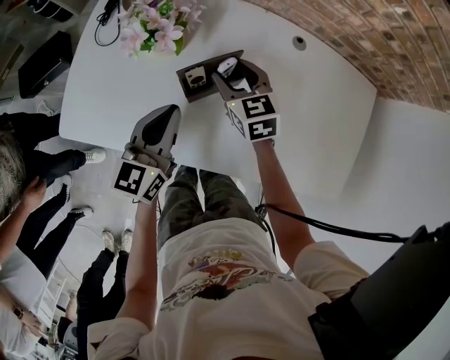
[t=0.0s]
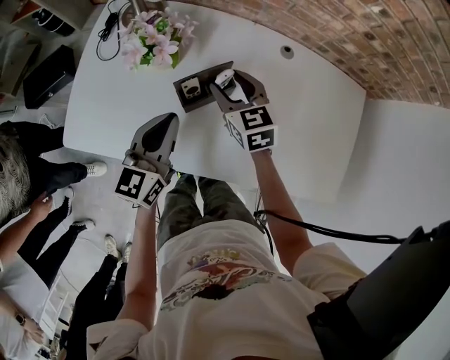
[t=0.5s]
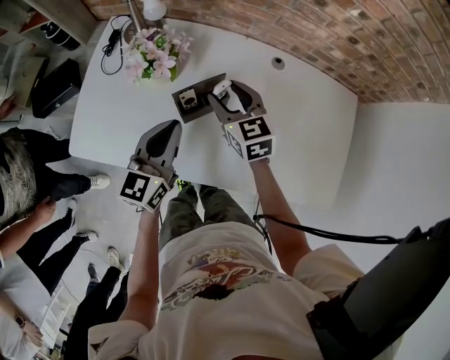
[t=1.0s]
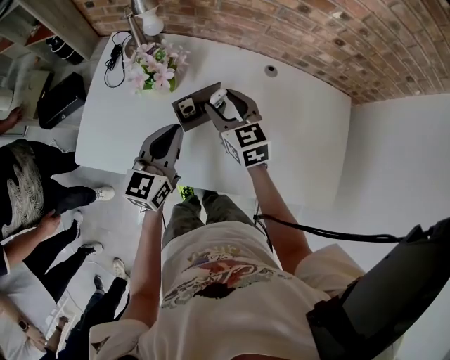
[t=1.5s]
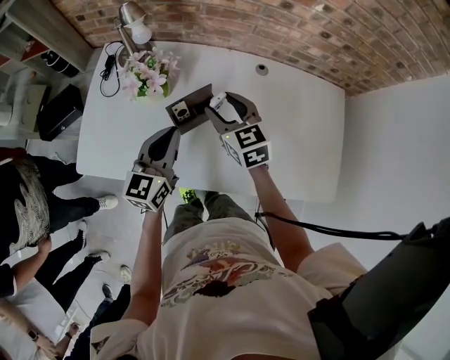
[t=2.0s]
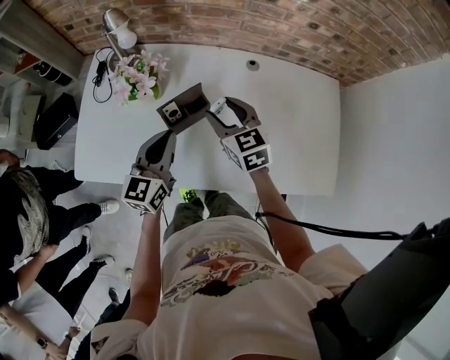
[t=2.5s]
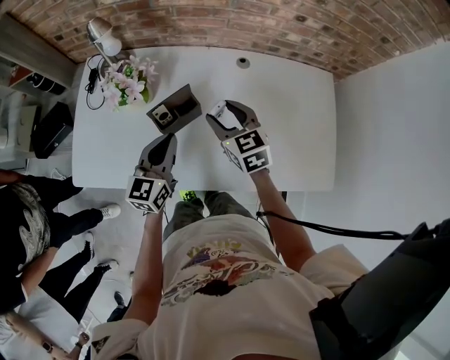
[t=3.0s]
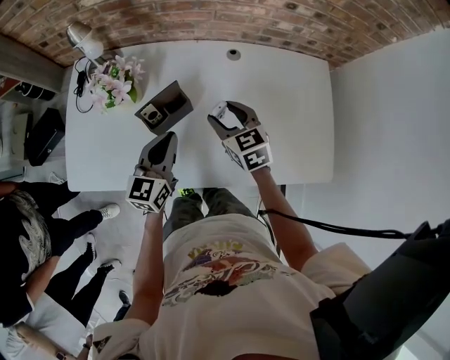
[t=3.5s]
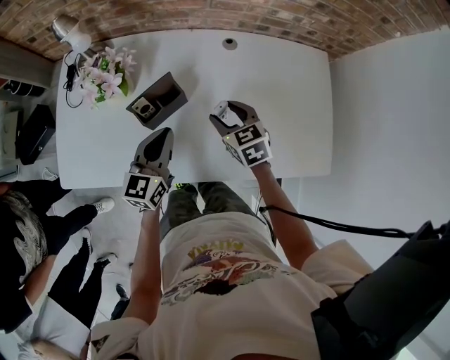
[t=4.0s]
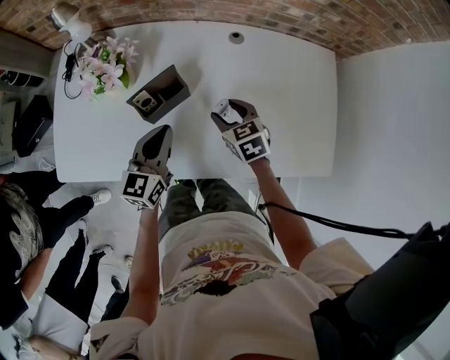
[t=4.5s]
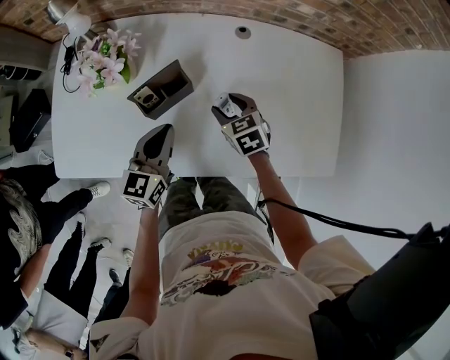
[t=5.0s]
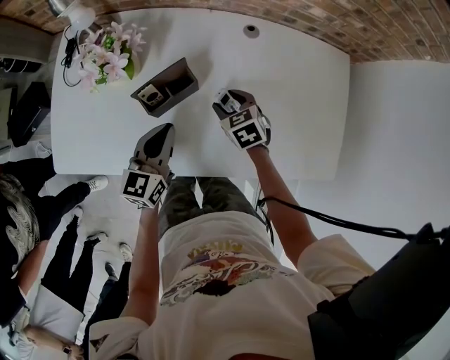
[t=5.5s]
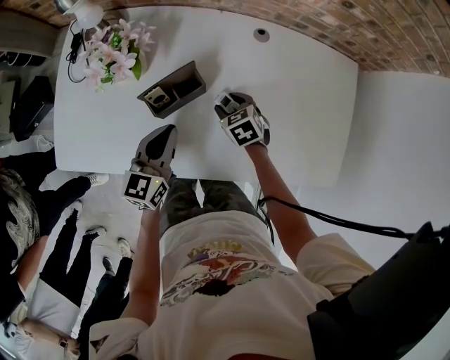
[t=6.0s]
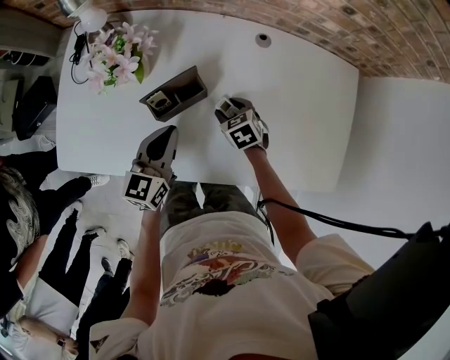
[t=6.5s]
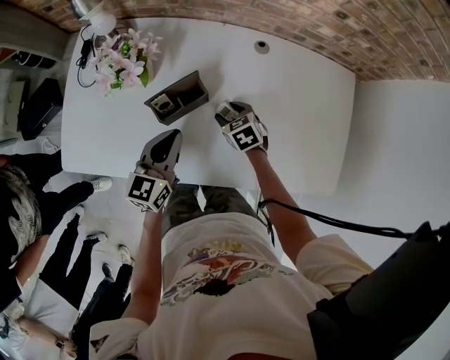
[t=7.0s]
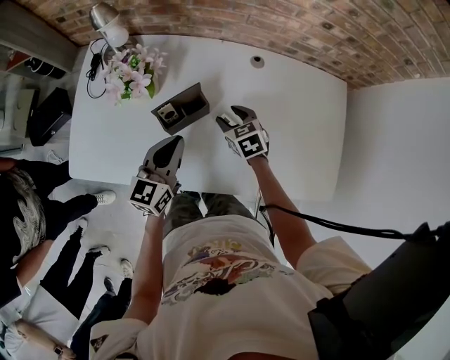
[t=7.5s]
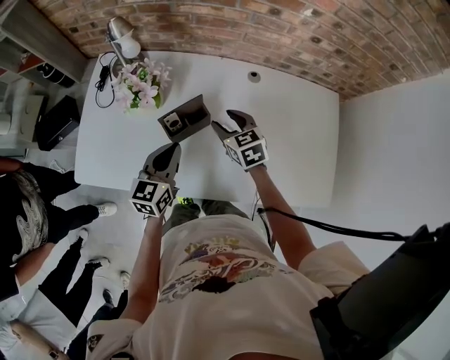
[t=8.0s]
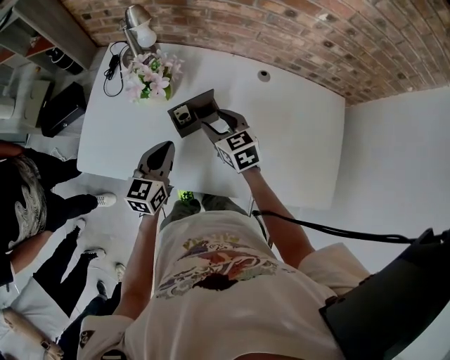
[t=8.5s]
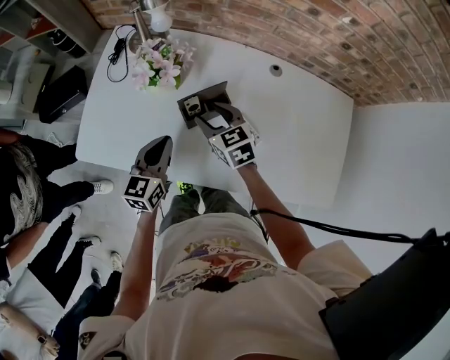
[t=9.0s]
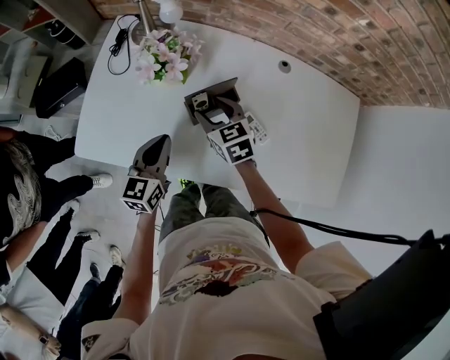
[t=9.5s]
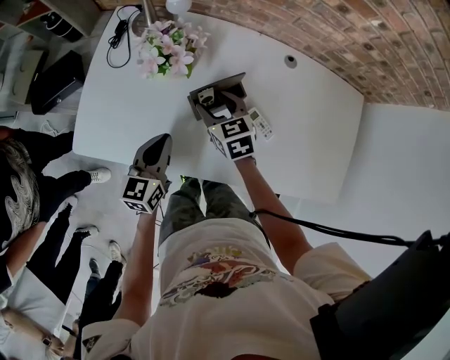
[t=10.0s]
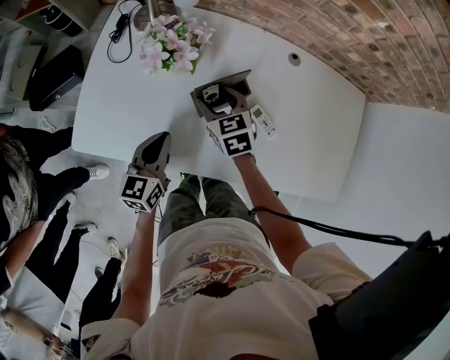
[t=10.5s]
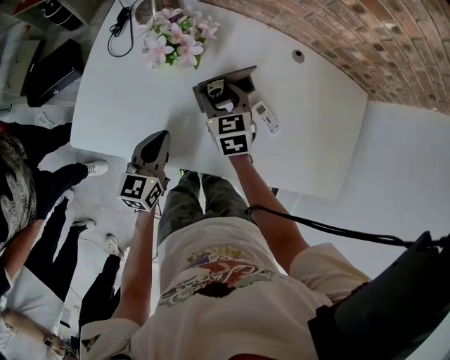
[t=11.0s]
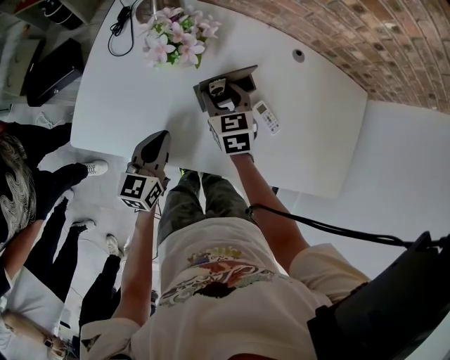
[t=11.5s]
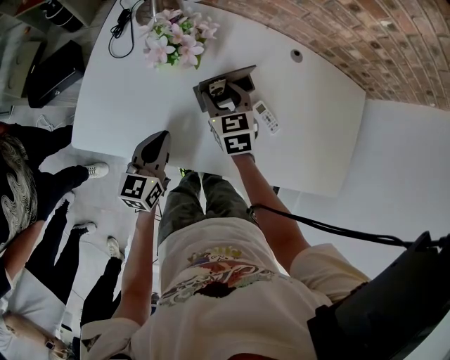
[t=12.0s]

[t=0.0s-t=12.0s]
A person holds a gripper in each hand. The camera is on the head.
t=0.0s to t=2.0s: The left gripper goes roughly 5 cm upward; the right gripper goes some 10 cm upward.
t=2.0s to t=4.0s: The right gripper heads to the right and downward, covering roughly 15 cm. Meanwhile the left gripper heads to the right and downward, covering roughly 10 cm.
t=4.0s to t=6.0s: The right gripper goes about 10 cm downward; the left gripper shifts by some 5 cm.
t=6.0s to t=8.0s: The left gripper ends up some 5 cm from where it was. The right gripper shifts roughly 15 cm upward, and swivels some 20 degrees.
t=8.0s to t=10.0s: The left gripper shifts about 10 cm to the left and downward, while the right gripper shifts roughly 15 cm to the left.
t=10.0s to t=12.0s: There are only small adjustments of the grippers.

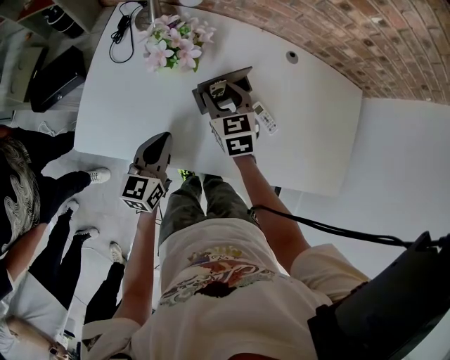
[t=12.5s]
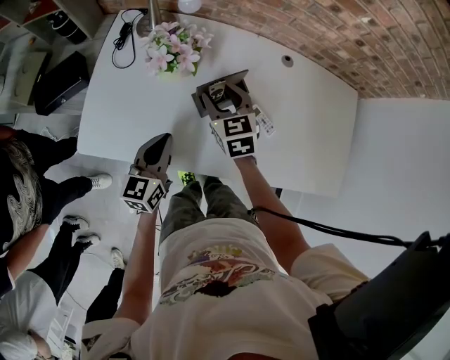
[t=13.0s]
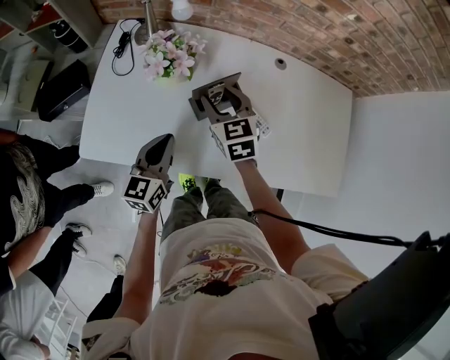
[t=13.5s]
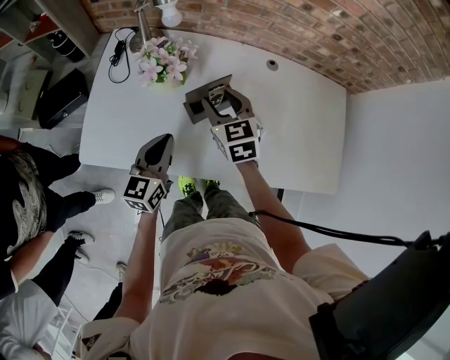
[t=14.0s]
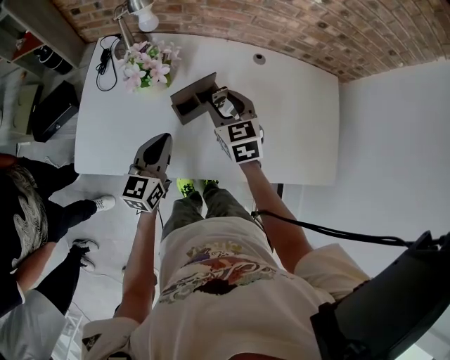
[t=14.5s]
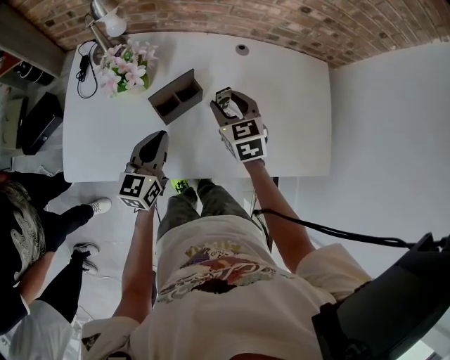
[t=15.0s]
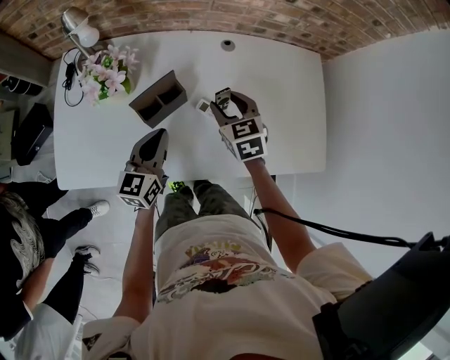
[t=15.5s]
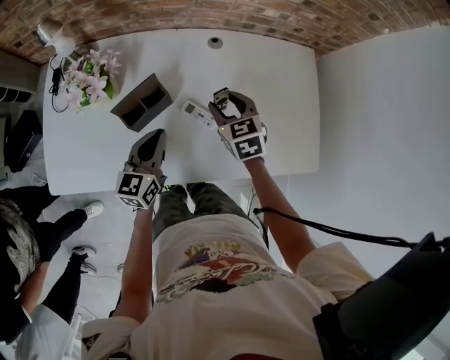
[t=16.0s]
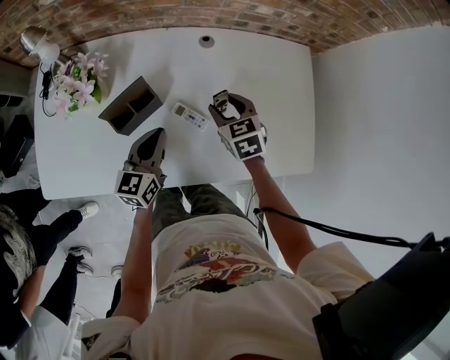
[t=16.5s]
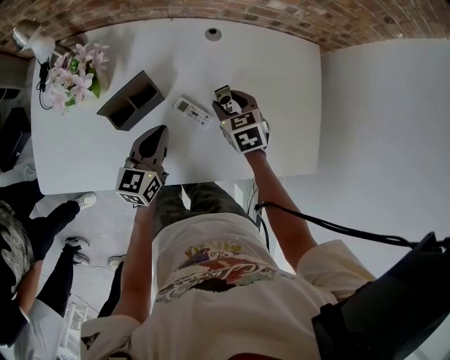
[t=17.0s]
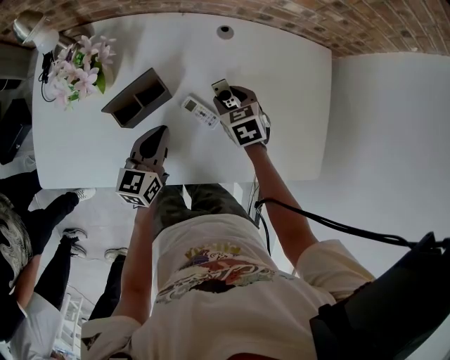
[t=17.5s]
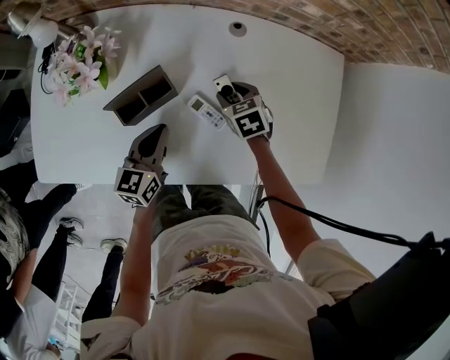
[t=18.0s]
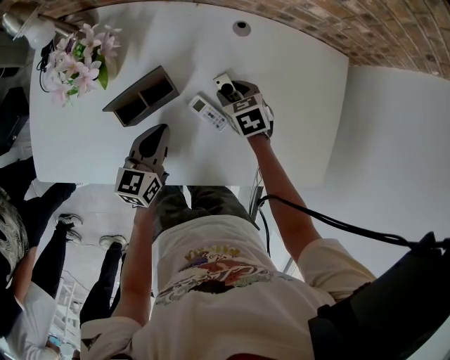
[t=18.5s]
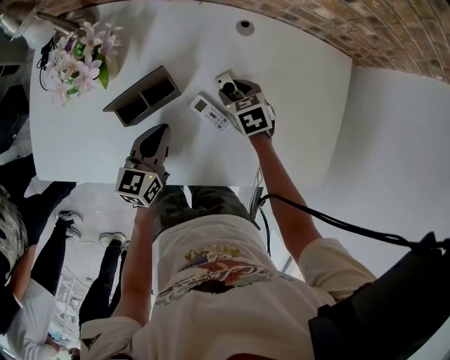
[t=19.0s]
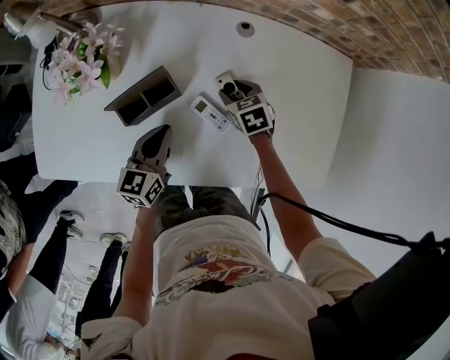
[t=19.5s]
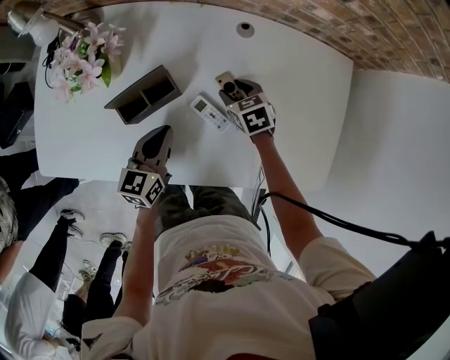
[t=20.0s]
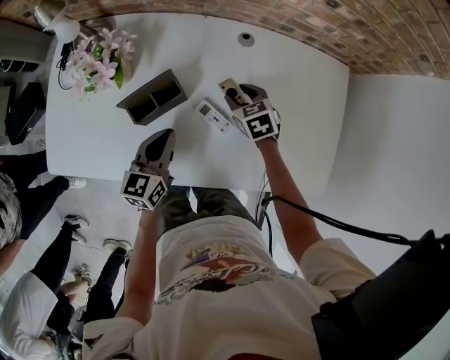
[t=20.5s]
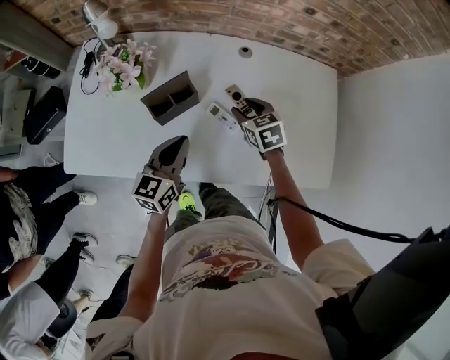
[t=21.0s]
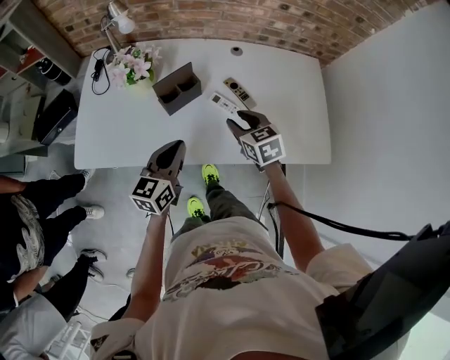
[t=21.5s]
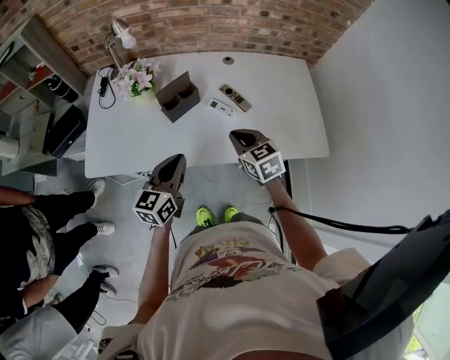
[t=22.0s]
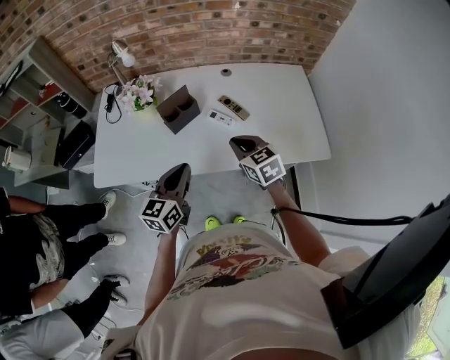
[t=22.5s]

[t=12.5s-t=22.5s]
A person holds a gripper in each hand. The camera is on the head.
t=12.5s to t=14.5s: The left gripper goes some 10 cm upward and to the right, while the right gripper travels to the right and upward by some 10 cm.
t=14.5s to t=16.5s: The right gripper heads to the right and downward, covering about 20 cm; the left gripper moves to the right, about 15 cm.
t=16.5s to t=18.5s: The right gripper heads downward and forward, covering about 15 cm. The left gripper travels downward by roughly 5 cm.
t=18.5s to t=20.5s: The grippers stay close to where they were, moving slightly.
t=20.5s to t=22.5s: The grippers both shift backward and upward by about 30 cm. The right gripper rotates approximately 20 degrees, and closes up.

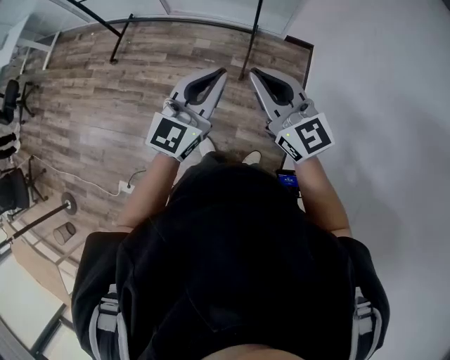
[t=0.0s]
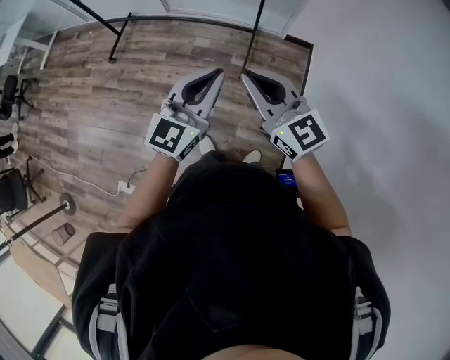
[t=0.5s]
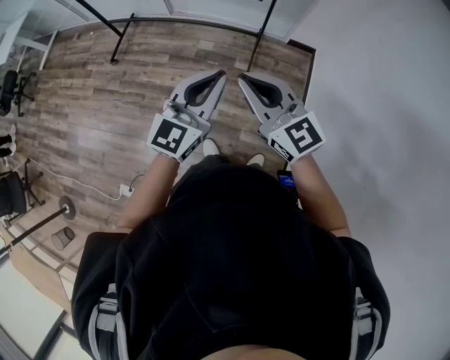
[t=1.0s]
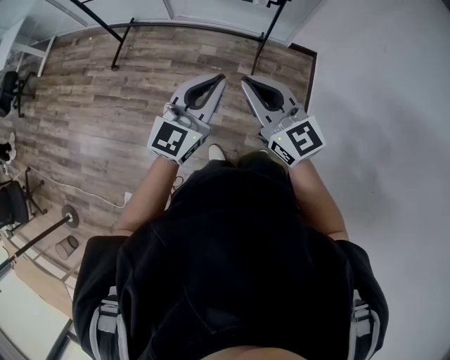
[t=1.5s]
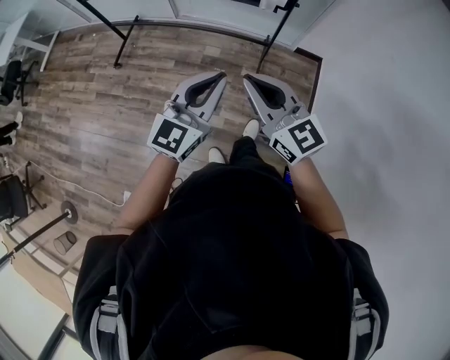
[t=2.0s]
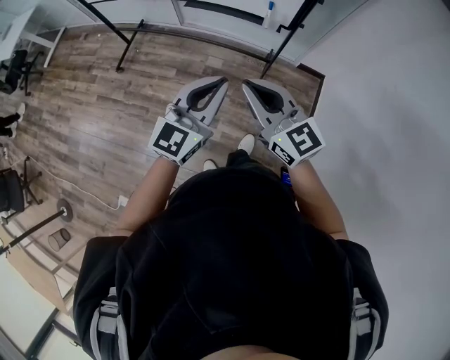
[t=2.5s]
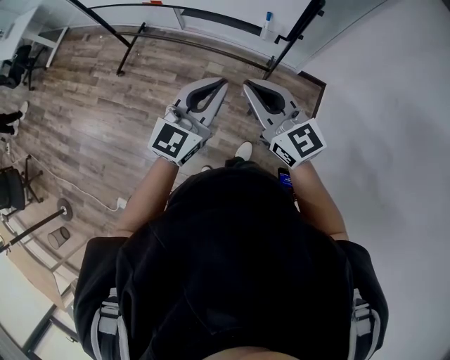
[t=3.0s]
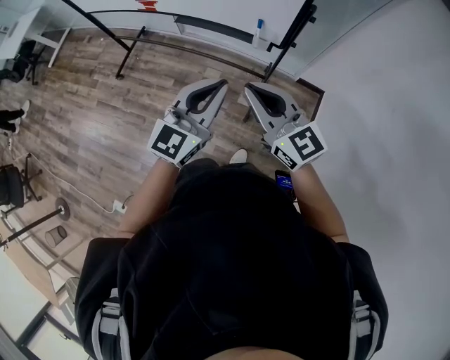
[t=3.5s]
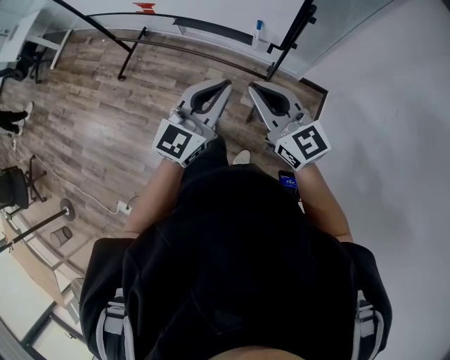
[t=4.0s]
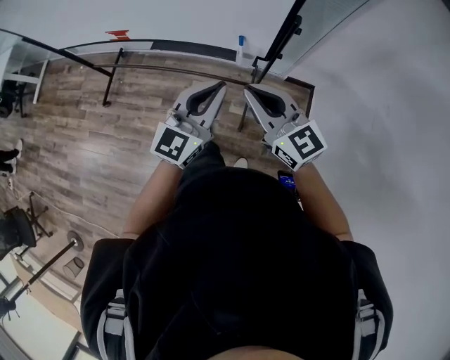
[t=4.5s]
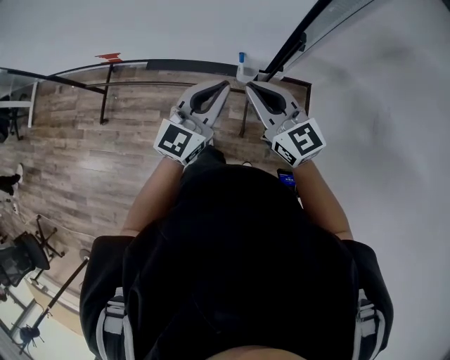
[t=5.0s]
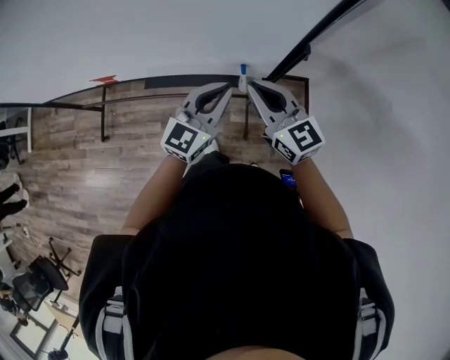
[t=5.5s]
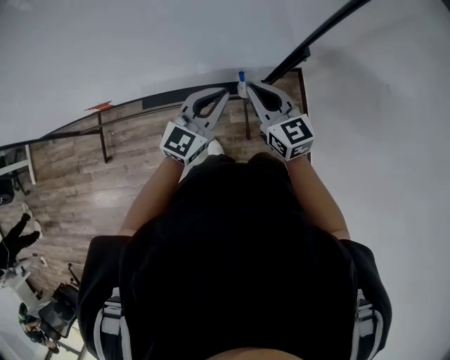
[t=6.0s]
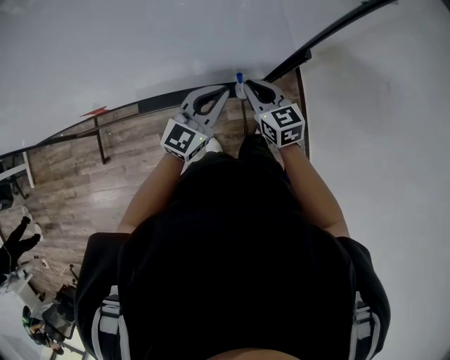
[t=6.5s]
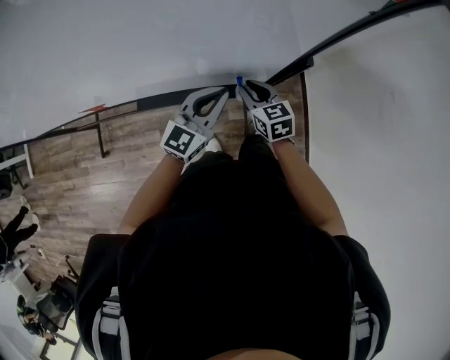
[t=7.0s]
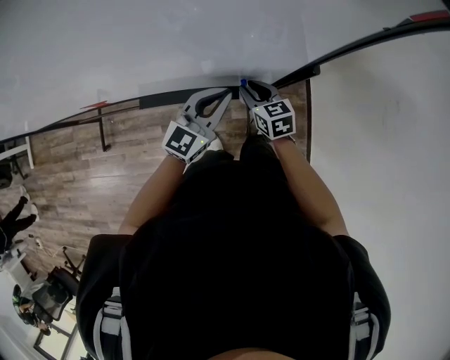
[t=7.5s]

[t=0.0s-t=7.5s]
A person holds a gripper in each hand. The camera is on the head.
t=0.0s to t=2.0s: Both grippers travel together to the left and forward, roughly 15 cm.
t=2.0s to t=4.0s: The two grippers go some 25 cm forward and to the right.
t=4.0s to t=5.5s: Both grippers travel together forward, some 25 cm. The left gripper changes its angle by some 20 degrees; the right gripper turns by about 20 degrees.
t=5.5s to t=7.5s: The right gripper is displaced downward and forward by approximately 20 cm, swivels approximately 30 degrees, and opens. The left gripper goes approximately 10 cm forward and downward.
